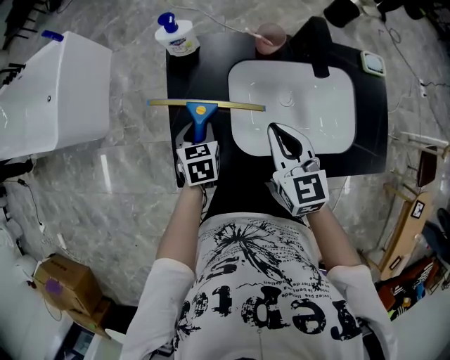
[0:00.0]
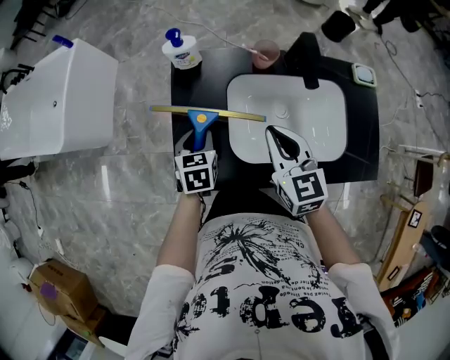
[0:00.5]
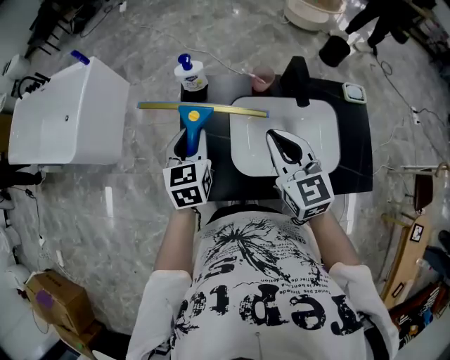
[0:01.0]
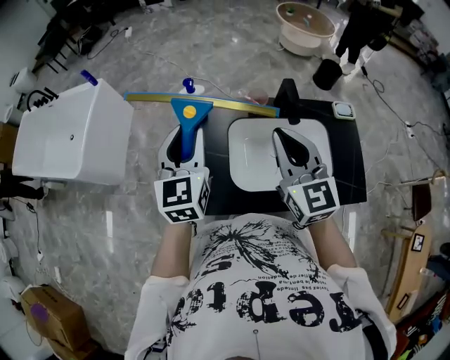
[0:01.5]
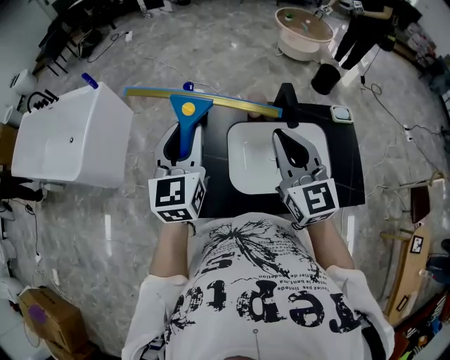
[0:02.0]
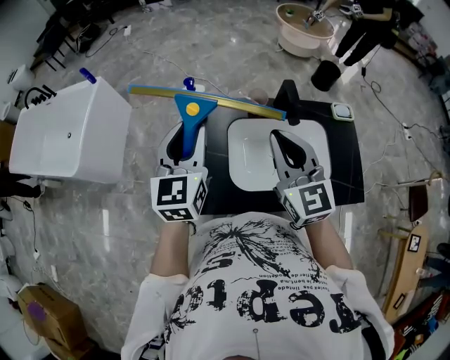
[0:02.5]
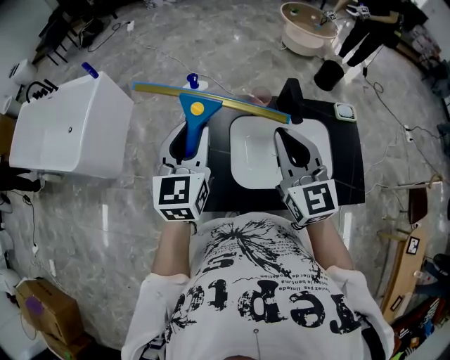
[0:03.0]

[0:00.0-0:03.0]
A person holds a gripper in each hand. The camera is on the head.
0:00.0 to 0:01.5: The left gripper goes roughly 35 cm upward, and angles its fingers upward, by approximately 40 degrees. The right gripper heads upward, covering about 20 cm, and turns by roughly 20 degrees.
0:01.5 to 0:03.0: The grippers move only a little.

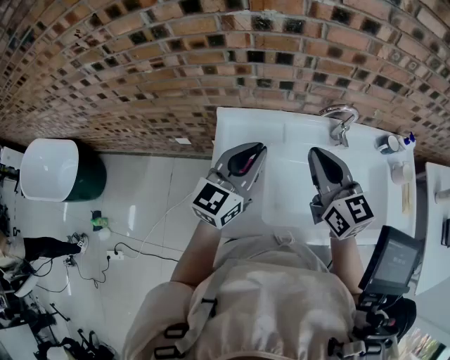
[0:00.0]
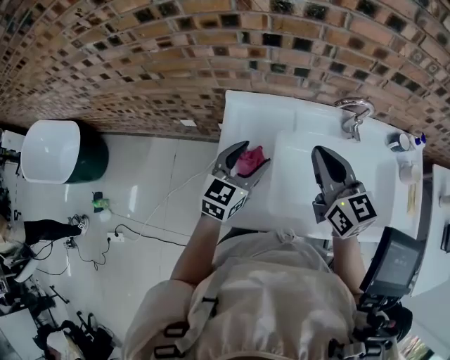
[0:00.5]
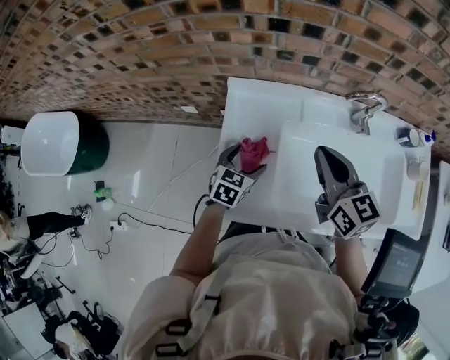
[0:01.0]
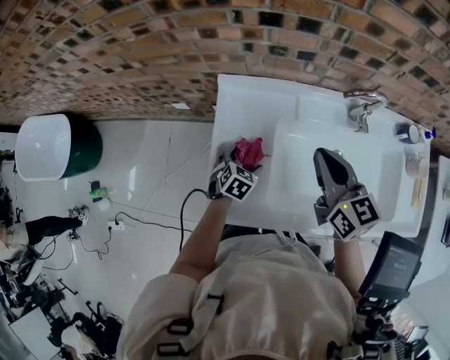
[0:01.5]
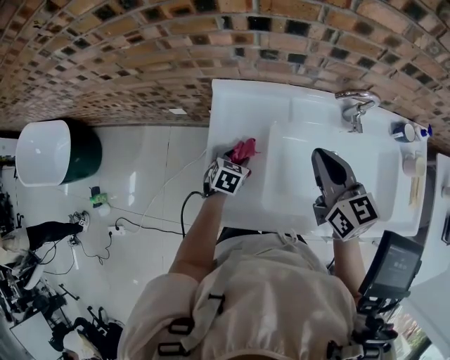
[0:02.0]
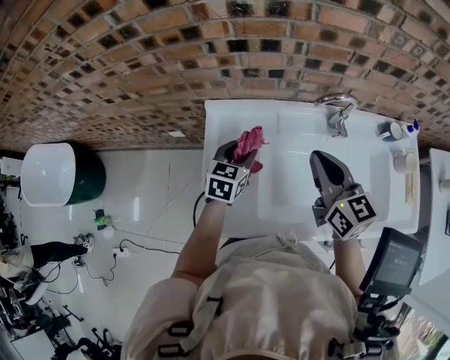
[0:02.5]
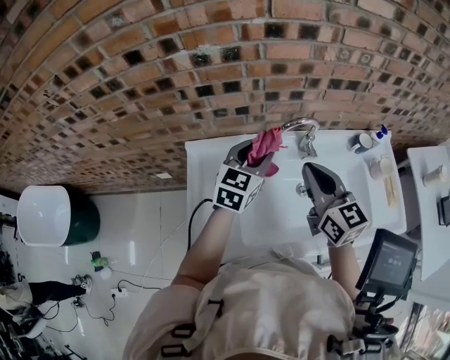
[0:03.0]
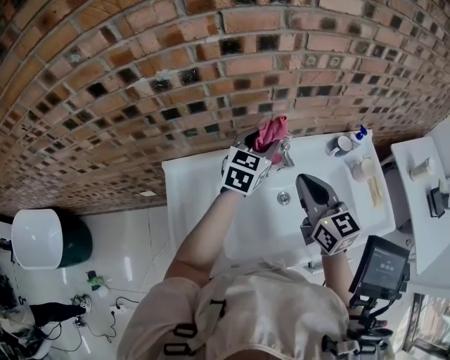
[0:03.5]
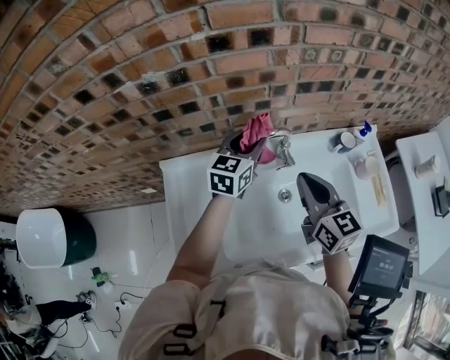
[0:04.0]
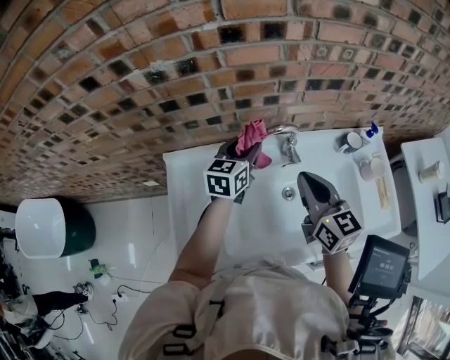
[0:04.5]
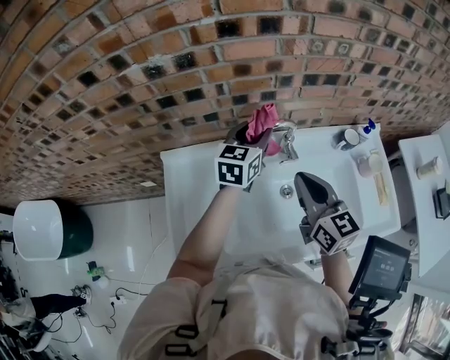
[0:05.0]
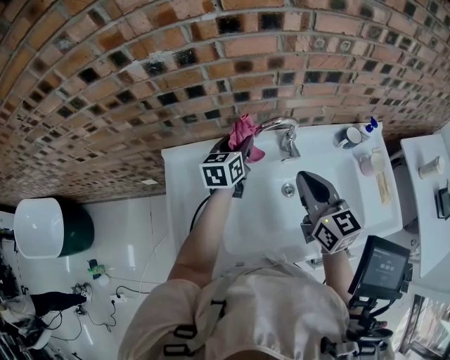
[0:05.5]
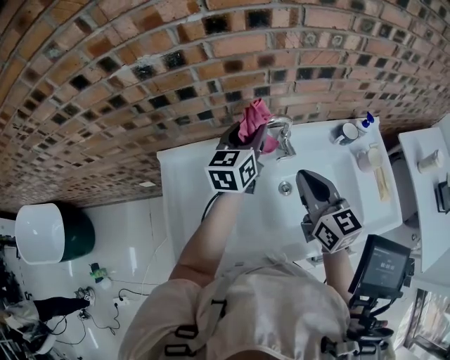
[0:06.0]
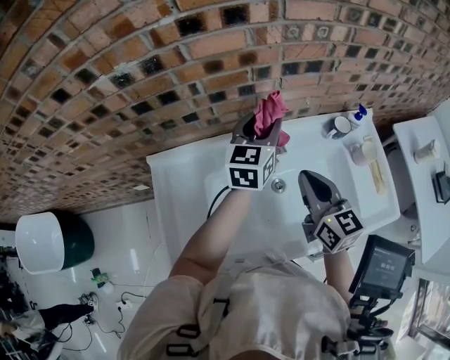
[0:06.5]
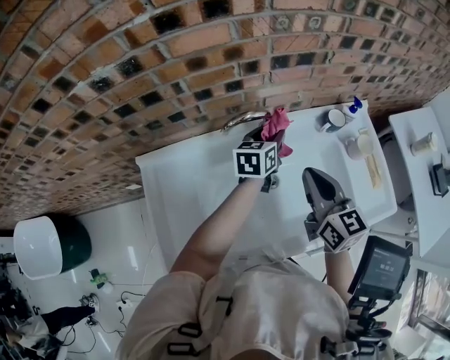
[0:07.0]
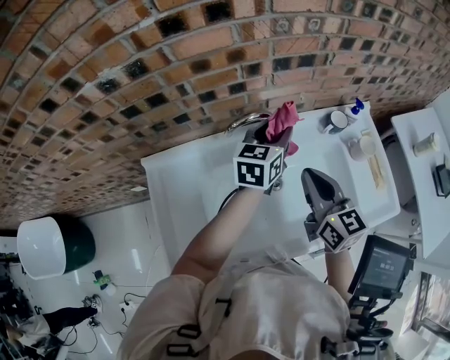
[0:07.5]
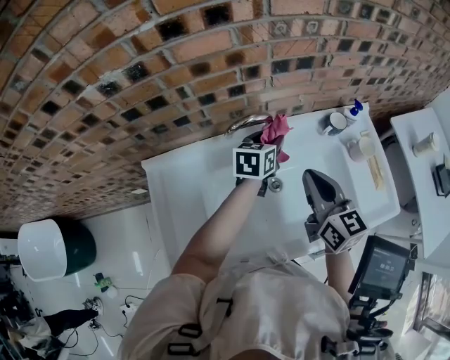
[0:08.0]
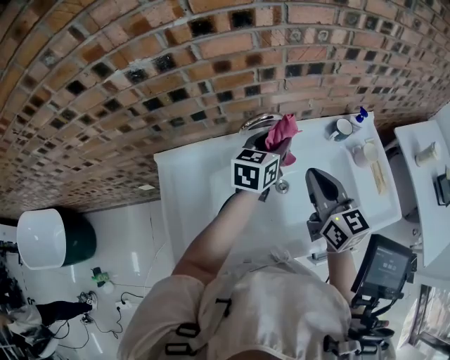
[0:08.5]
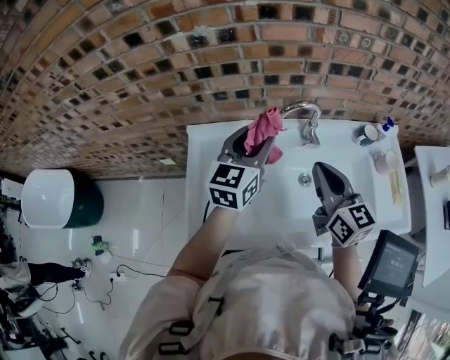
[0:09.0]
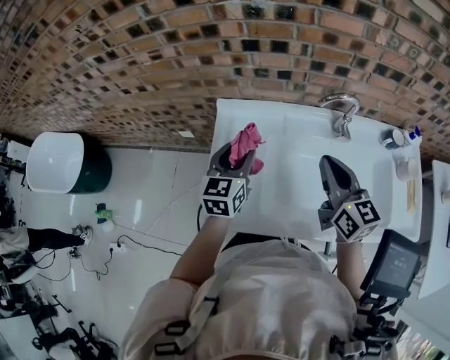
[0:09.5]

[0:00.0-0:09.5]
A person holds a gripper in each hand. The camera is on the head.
0:00.0 to 0:02.0: The left gripper goes approximately 35 cm downward, points its fingers some 50 degrees further downward, and opens; the right gripper is displaced downward by roughly 10 cm.
0:02.0 to 0:04.0: The right gripper is displaced to the right by about 20 cm, while the left gripper is displaced upward, to the right and forward by about 40 cm, and tilts its fingers some 40 degrees upward.
0:04.0 to 0:05.5: The left gripper shifts approximately 10 cm downward and to the left.
0:05.5 to 0:07.5: The left gripper travels to the right by roughly 20 cm. Meanwhile the right gripper travels to the right by about 5 cm.
0:07.5 to 0:09.5: The right gripper changes place by some 20 cm, while the left gripper swings up and down, about 15 cm each way, with 2 reversals, and turns by approximately 30 degrees.

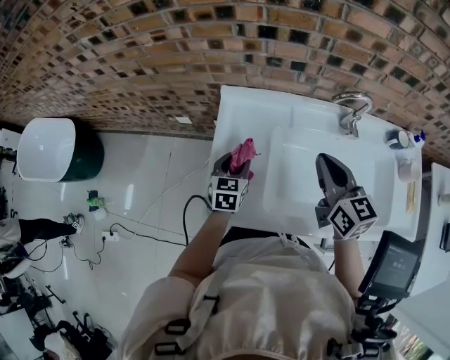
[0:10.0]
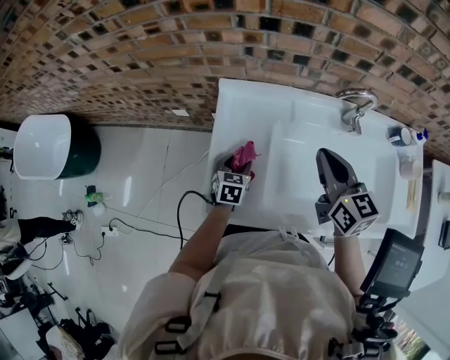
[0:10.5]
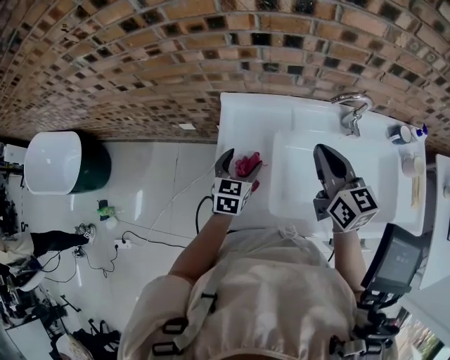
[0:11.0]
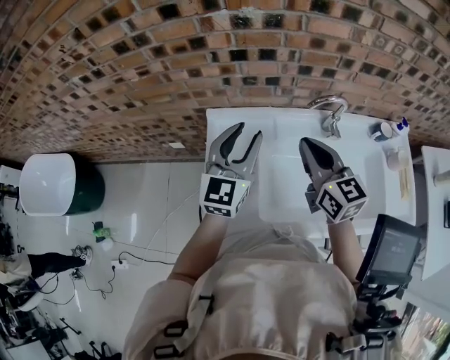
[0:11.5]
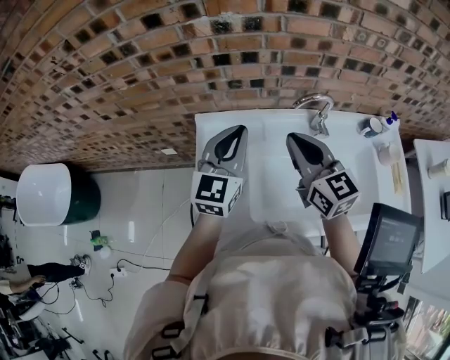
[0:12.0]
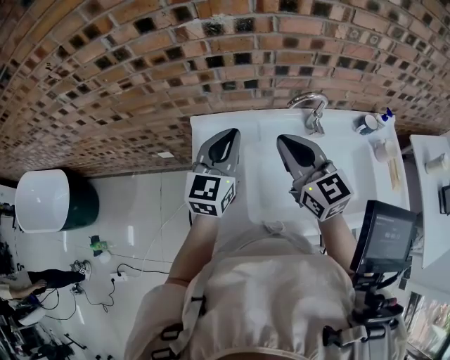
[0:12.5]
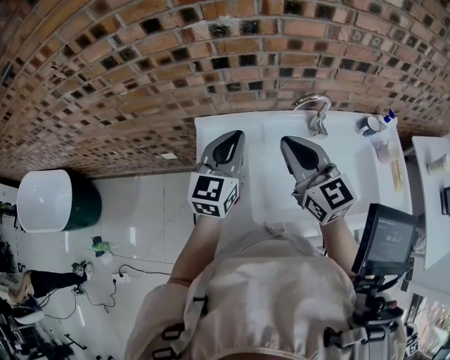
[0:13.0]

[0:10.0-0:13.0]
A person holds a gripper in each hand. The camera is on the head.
0:10.0 to 0:11.5: The right gripper travels upward by some 5 cm, while the left gripper moves upward, about 25 cm, angles its fingers upward, by roughly 30 degrees, and opens, then closes once more.
0:11.5 to 0:13.0: The left gripper closes up.

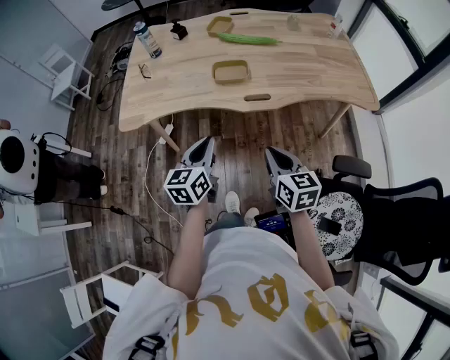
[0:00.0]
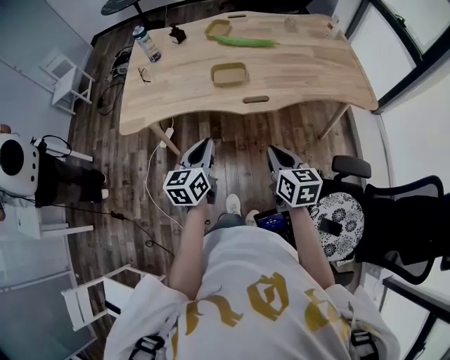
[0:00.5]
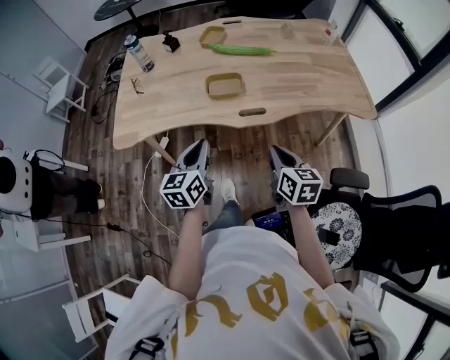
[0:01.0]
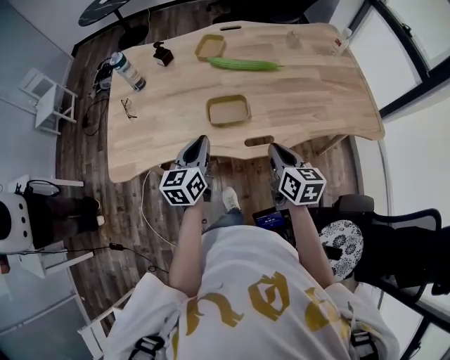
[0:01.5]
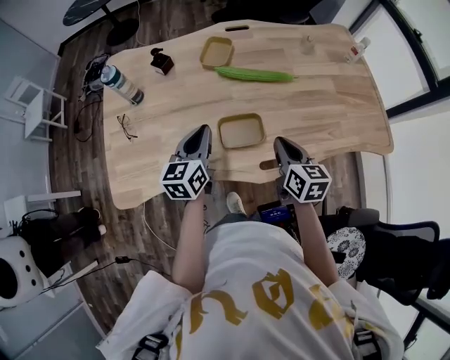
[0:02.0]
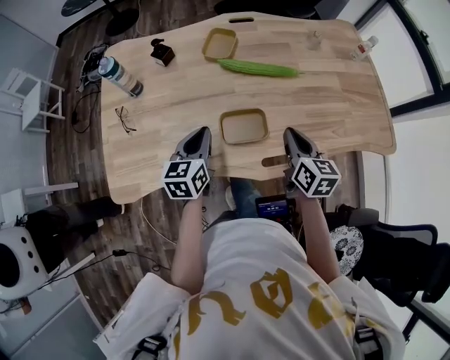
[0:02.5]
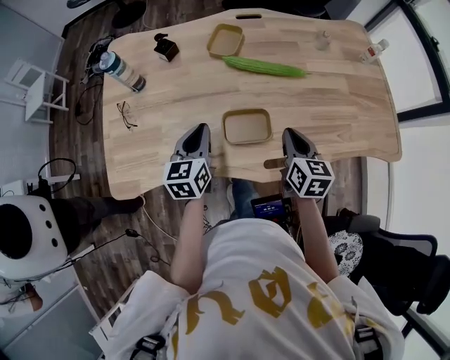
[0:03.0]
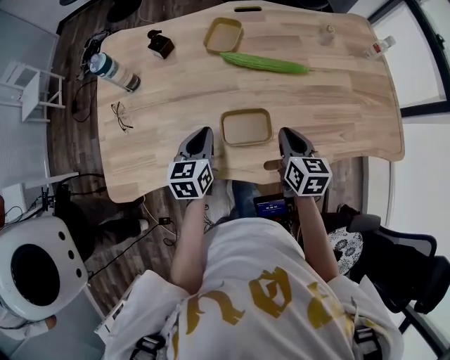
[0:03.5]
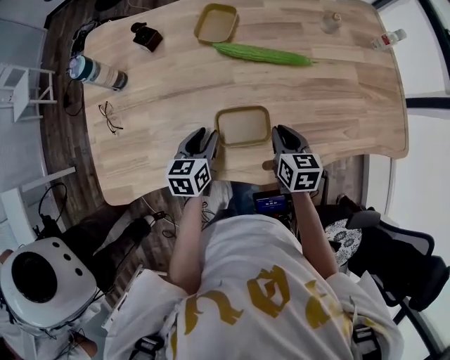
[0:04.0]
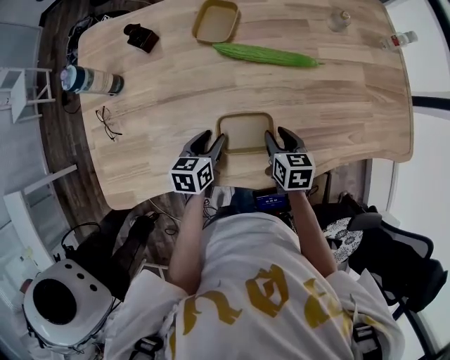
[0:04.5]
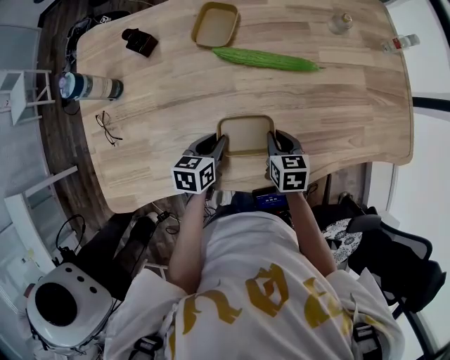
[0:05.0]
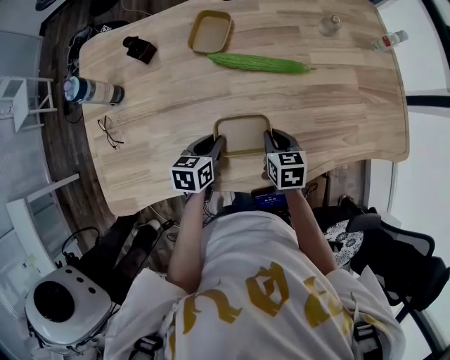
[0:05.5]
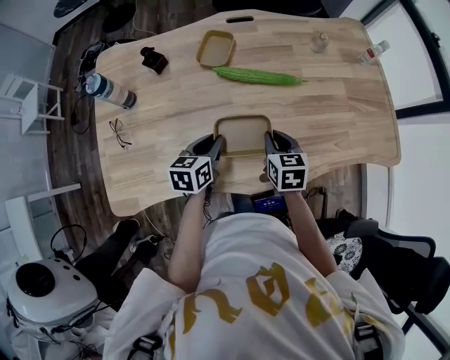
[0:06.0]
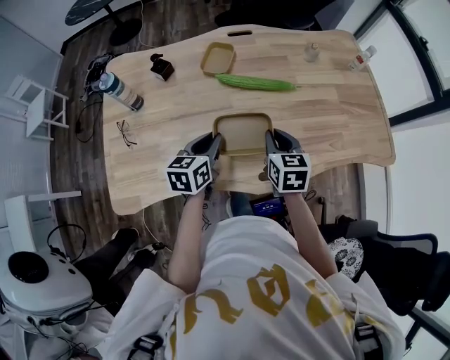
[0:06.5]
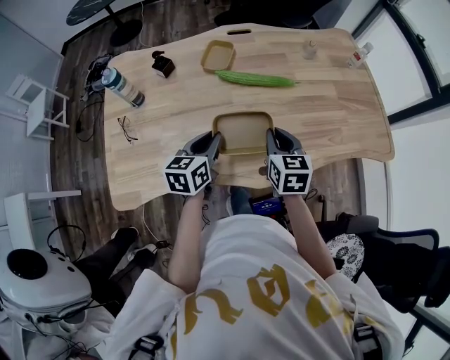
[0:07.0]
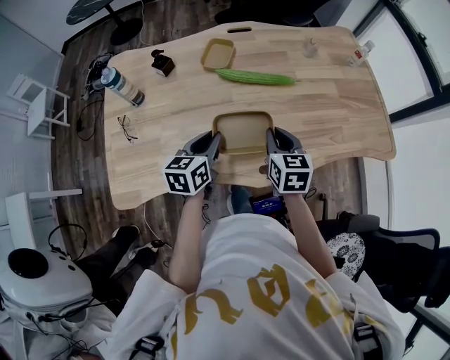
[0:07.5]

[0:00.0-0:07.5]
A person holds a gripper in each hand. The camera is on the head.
0:00.0 to 0:02.0: Both grippers move forward, some 40 cm.
0:02.0 to 0:04.0: The left gripper shifts approximately 15 cm downward, turns by approximately 20 degrees, and opens. Meanwhile the right gripper shifts roughly 15 cm downward and forward.
0:04.0 to 0:05.5: The right gripper opens and closes again.
0:05.5 to 0:07.5: The grippers both shift upward by some 15 cm.

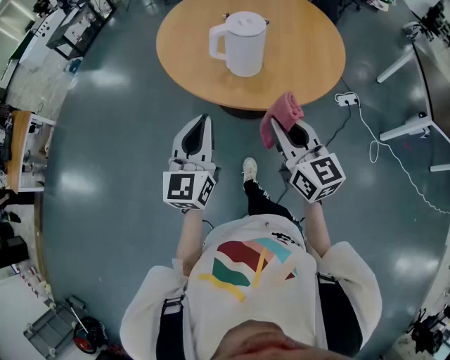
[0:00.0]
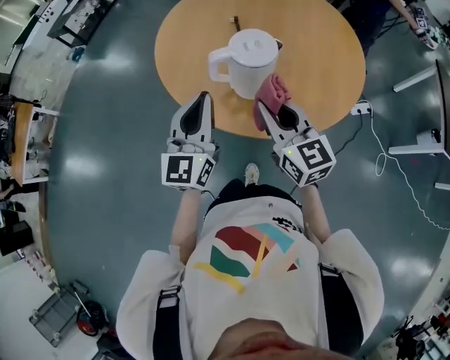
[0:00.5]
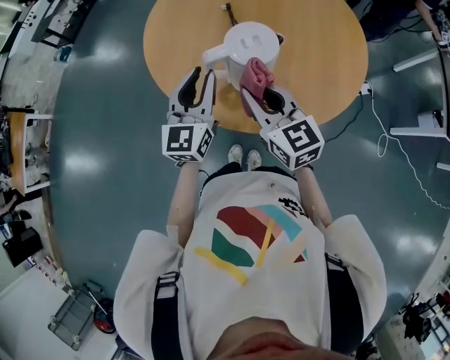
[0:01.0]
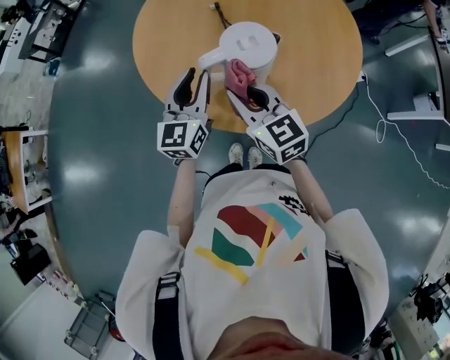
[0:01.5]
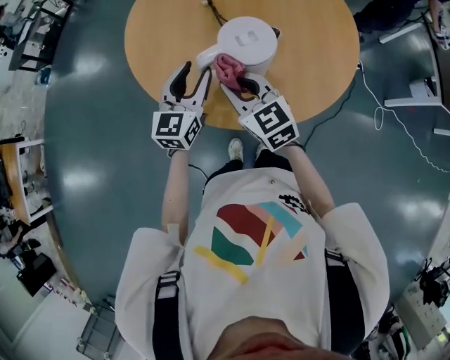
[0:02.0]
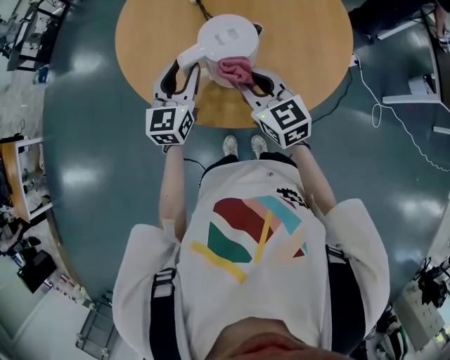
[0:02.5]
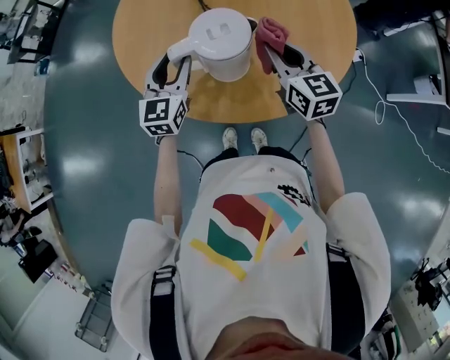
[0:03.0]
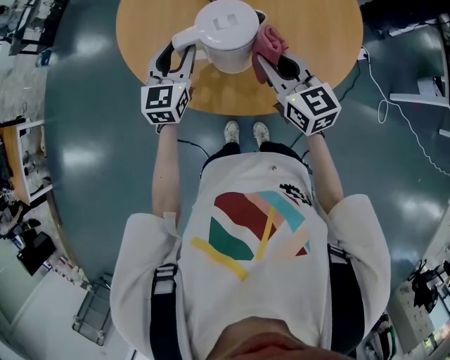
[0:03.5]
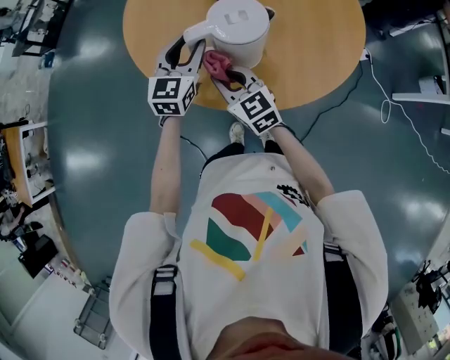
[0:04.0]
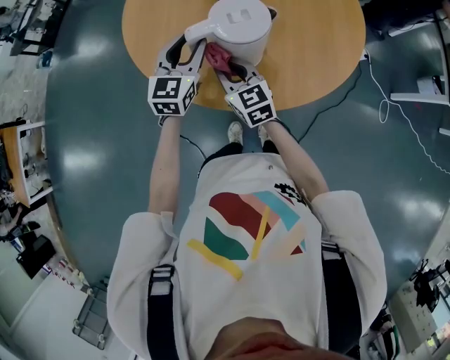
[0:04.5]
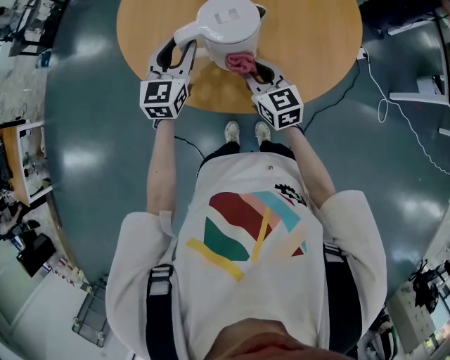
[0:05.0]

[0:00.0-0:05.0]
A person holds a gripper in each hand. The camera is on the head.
0:00.0 to 0:02.5: Both grippers travel together forward, about 35 cm. The left gripper opens up.
0:02.5 to 0:05.0: The right gripper swings left and right, approximately 20 cm each way, with 2 reversals.
